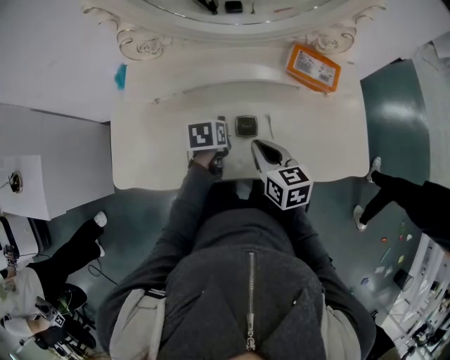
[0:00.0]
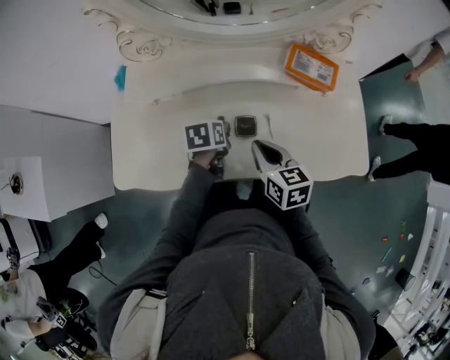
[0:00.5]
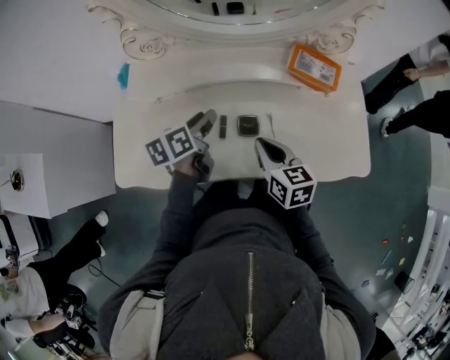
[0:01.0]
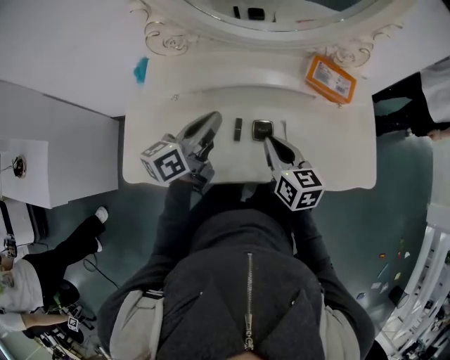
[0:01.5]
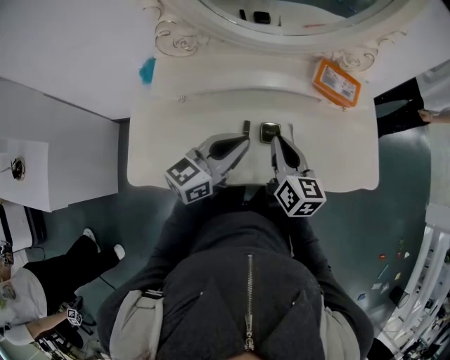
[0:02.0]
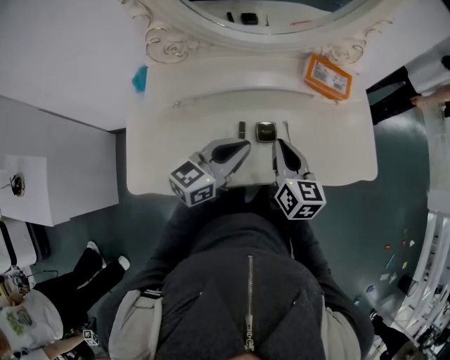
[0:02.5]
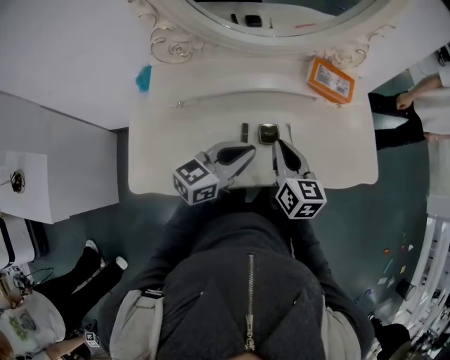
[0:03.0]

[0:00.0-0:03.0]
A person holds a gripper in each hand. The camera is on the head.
0:00.0 to 0:01.5: The left gripper moves upward, roughly 20 cm, angles its fingers upward, by approximately 50 degrees, and closes up.
0:01.5 to 0:03.0: The left gripper goes some 10 cm to the right and backward, and rotates some 30 degrees.

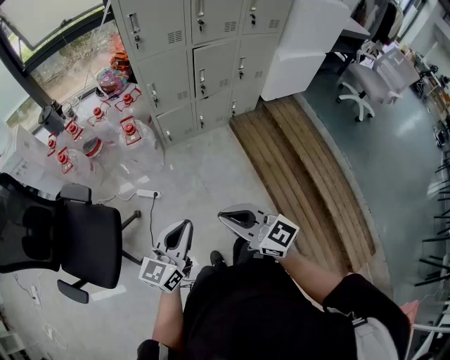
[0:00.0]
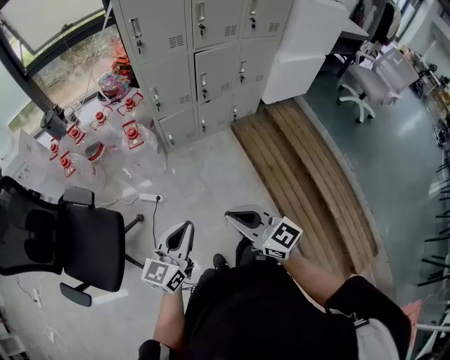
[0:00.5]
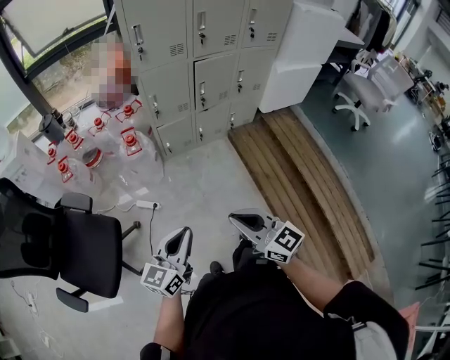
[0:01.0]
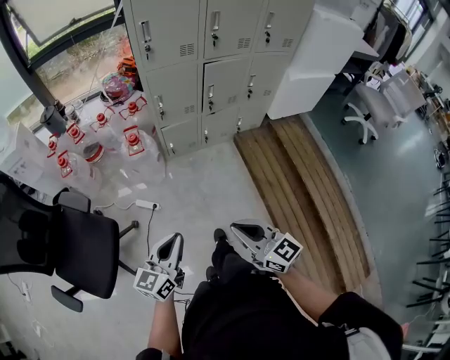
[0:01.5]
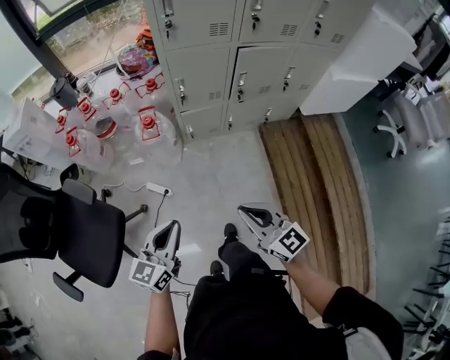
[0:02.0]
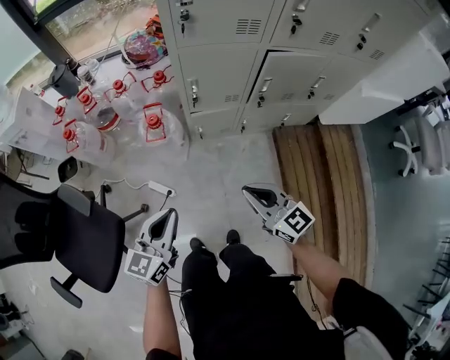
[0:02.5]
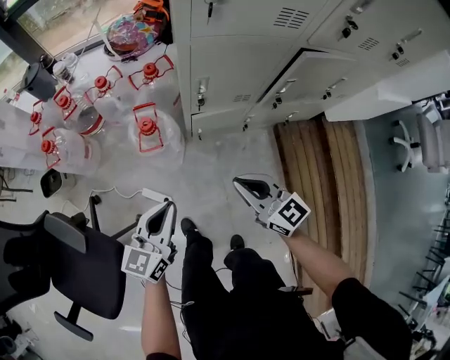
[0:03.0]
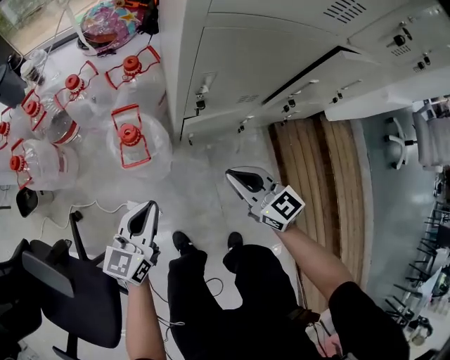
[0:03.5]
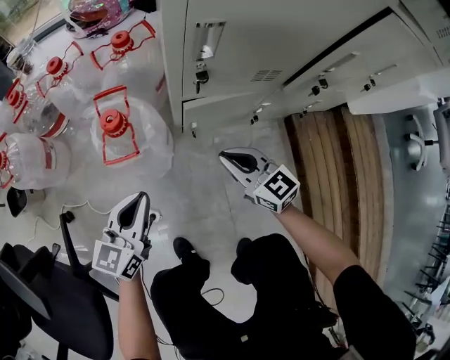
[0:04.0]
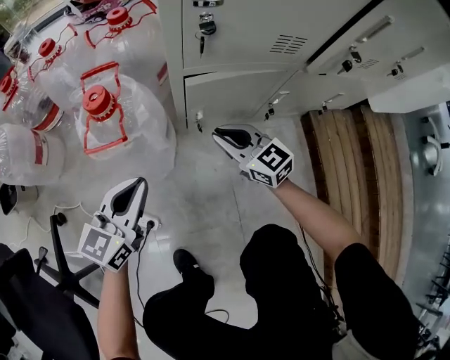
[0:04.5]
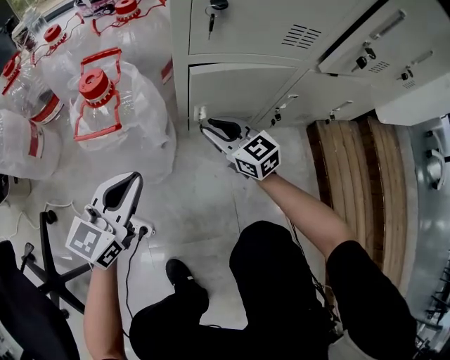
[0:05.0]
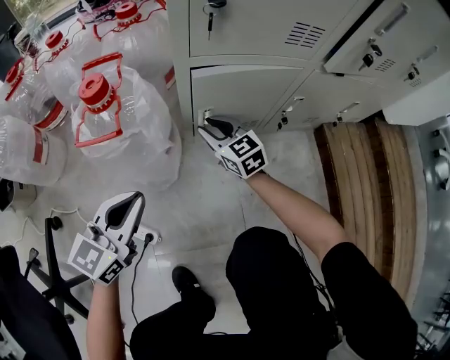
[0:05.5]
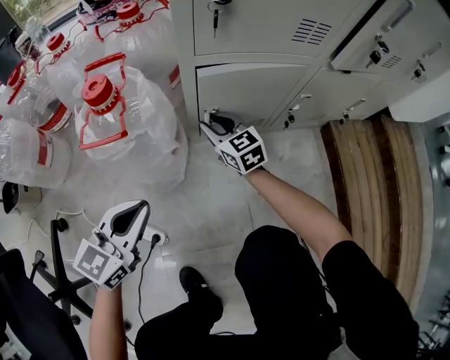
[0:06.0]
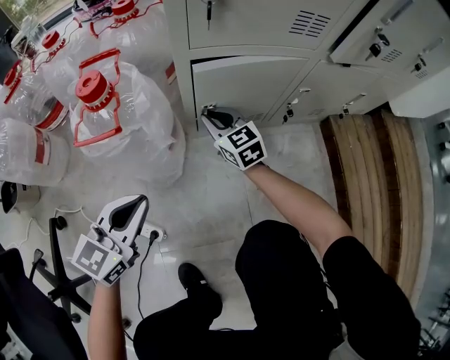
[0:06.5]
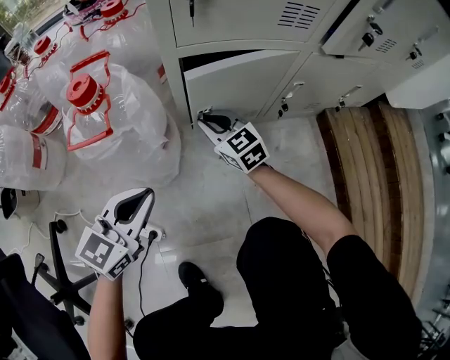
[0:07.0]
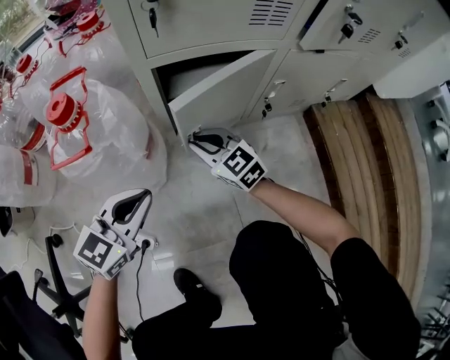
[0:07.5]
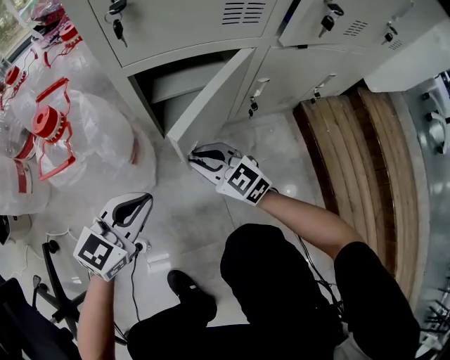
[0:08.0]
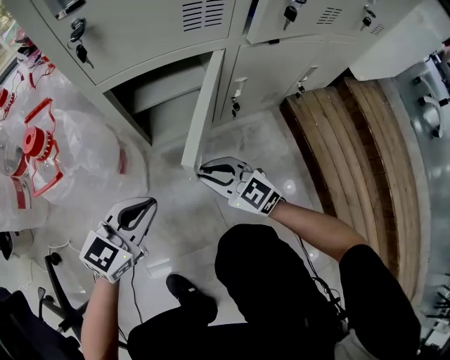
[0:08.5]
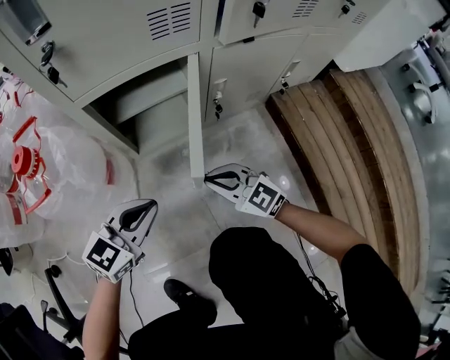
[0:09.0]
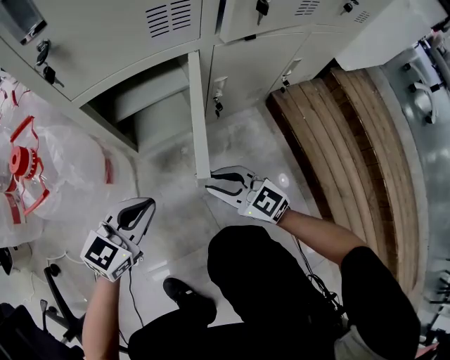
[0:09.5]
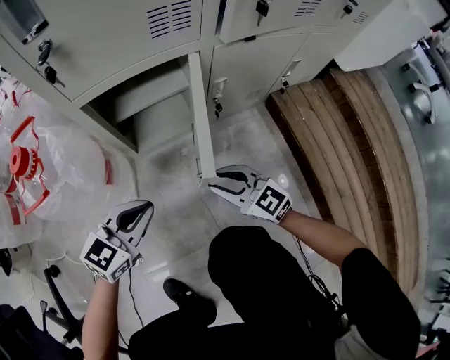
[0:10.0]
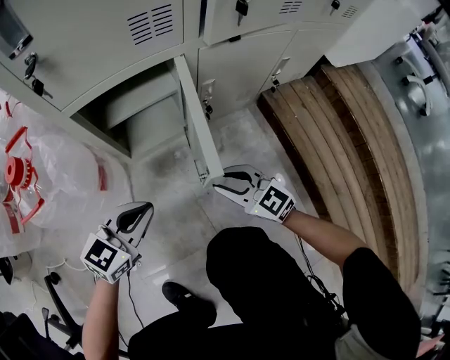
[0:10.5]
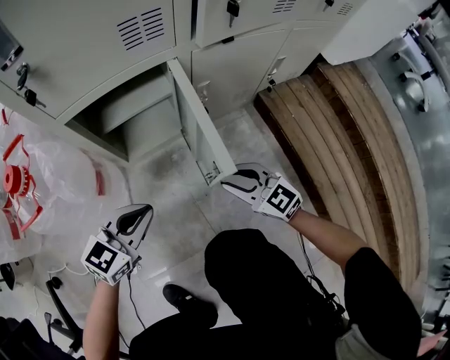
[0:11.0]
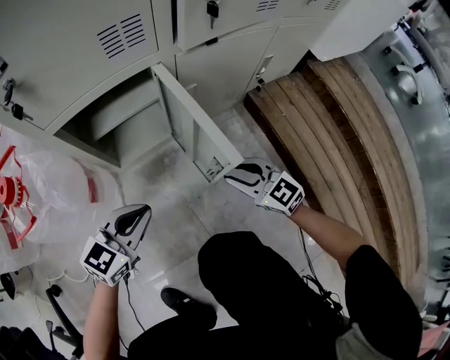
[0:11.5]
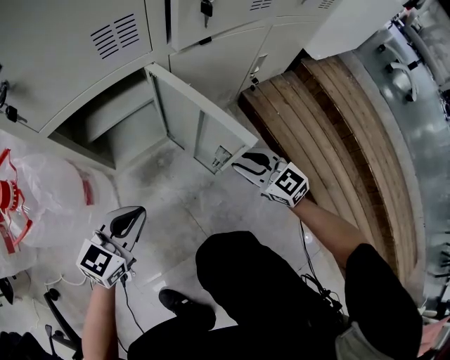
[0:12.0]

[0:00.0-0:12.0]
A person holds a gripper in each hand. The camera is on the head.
0:00.0 to 0:02.0: The grippers both shift forward by approximately 20 cm.
0:02.0 to 0:04.0: Both grippers are carried forward, about 40 cm. Both grippers move downward, some 40 cm.
0:04.0 to 0:06.0: The right gripper travels downward and forward by approximately 25 cm, and opens its fingers, while the left gripper travels downward by approximately 15 cm.
0:06.0 to 0:08.0: The right gripper travels backward and to the right by roughly 15 cm; the left gripper heads to the right, covering about 10 cm.
0:08.0 to 0:10.0: The left gripper is displaced to the right by roughly 5 cm, while the right gripper shifts about 15 cm to the right and backward.
0:10.0 to 0:12.0: The right gripper goes approximately 15 cm to the right.

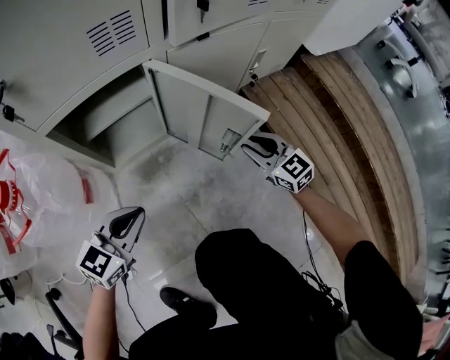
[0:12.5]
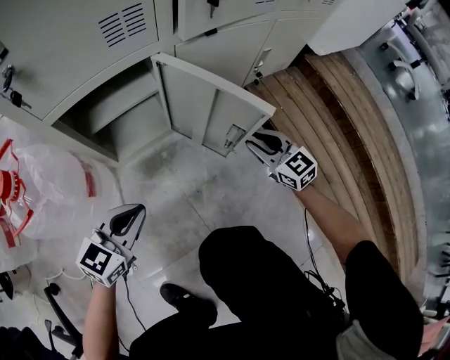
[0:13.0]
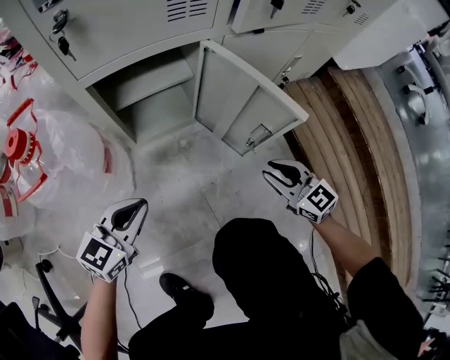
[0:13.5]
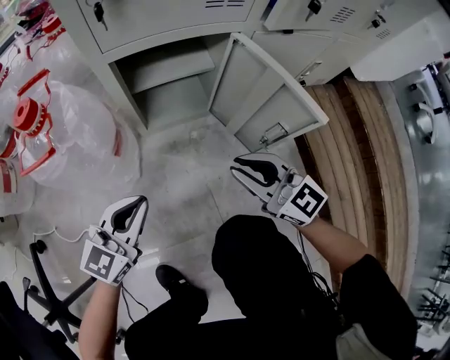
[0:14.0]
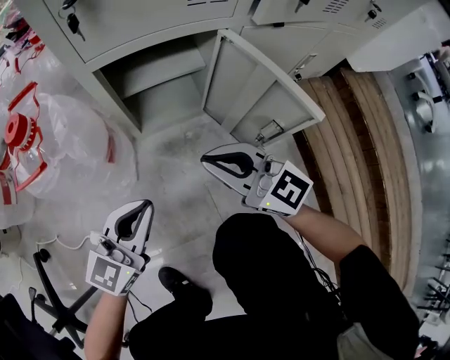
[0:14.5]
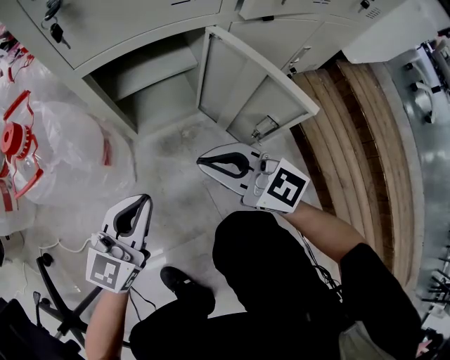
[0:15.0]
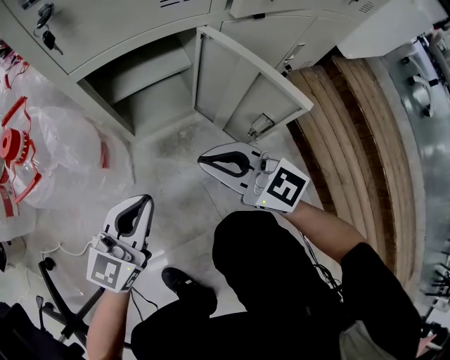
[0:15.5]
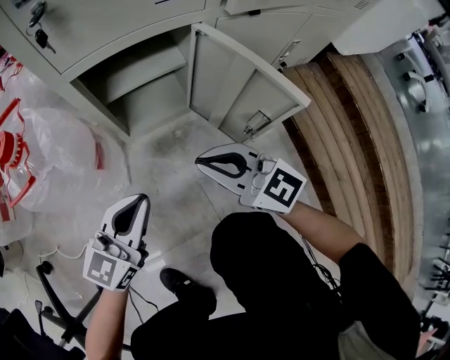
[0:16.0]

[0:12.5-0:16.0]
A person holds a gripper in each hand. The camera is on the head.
0:12.5 to 0:14.5: The right gripper is displaced to the left and upward by approximately 30 cm, swivels roughly 30 degrees, and closes its fingers; the left gripper shifts about 5 cm to the left, and rotates roughly 20 degrees.
0:14.5 to 0:16.0: The grippers stay close to where they were, moving slightly.

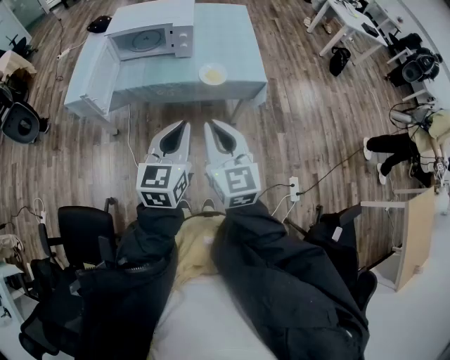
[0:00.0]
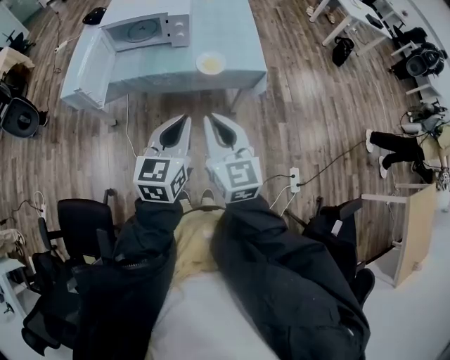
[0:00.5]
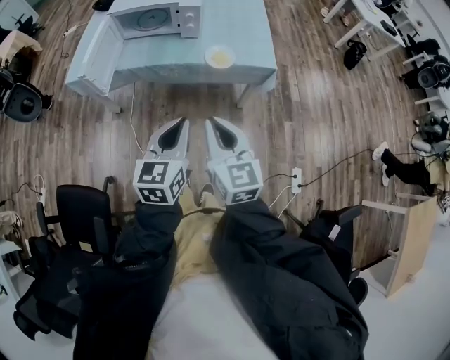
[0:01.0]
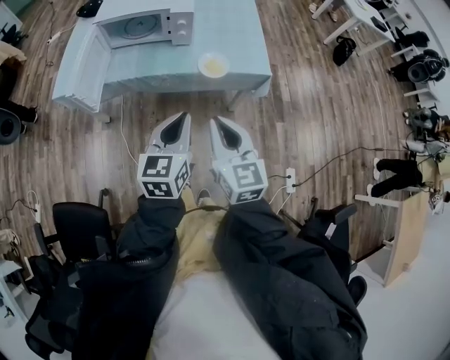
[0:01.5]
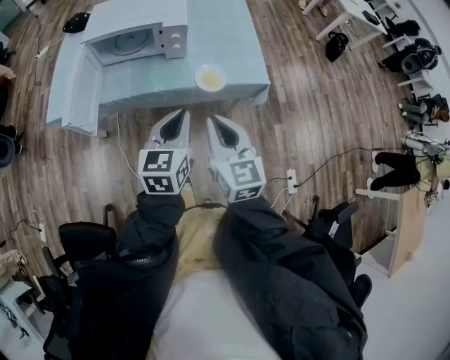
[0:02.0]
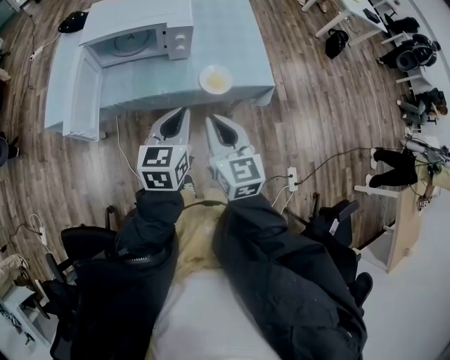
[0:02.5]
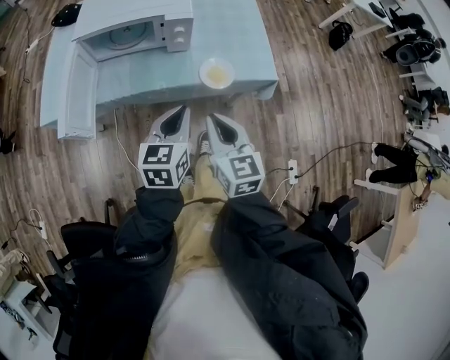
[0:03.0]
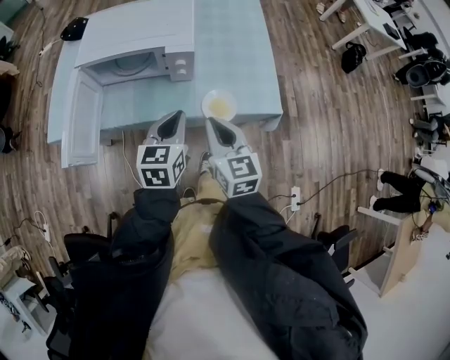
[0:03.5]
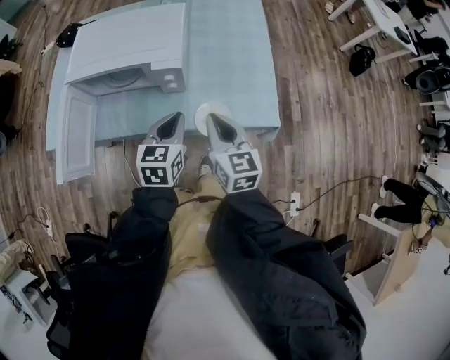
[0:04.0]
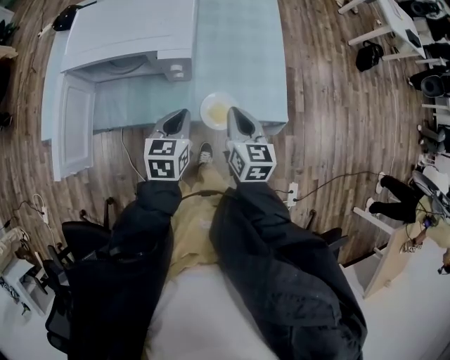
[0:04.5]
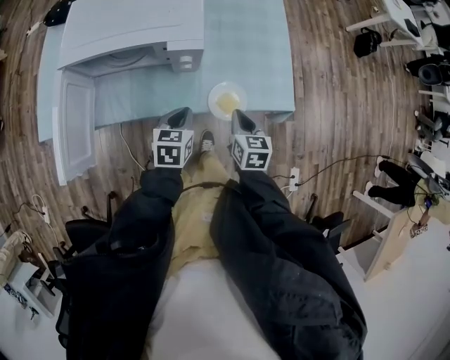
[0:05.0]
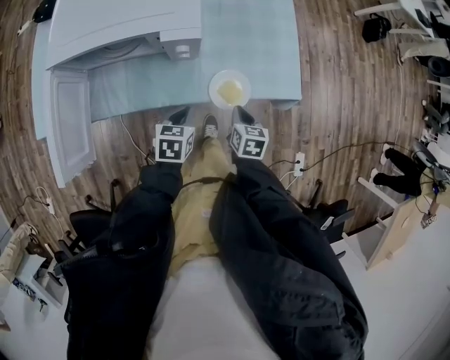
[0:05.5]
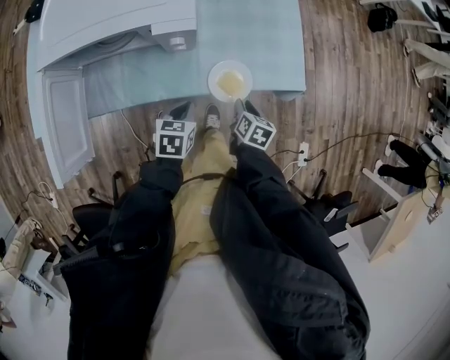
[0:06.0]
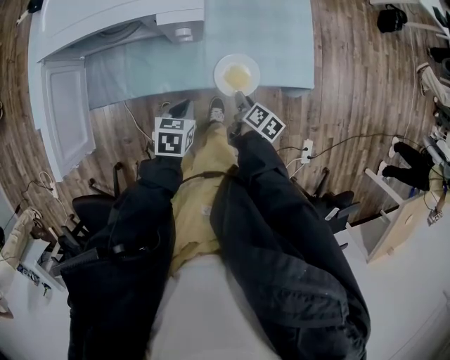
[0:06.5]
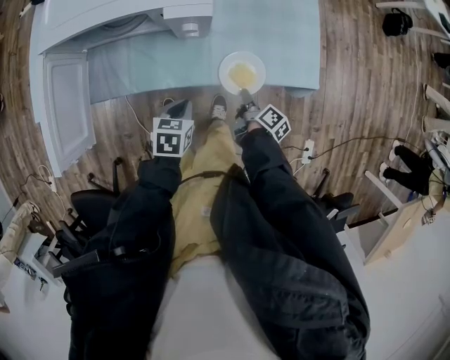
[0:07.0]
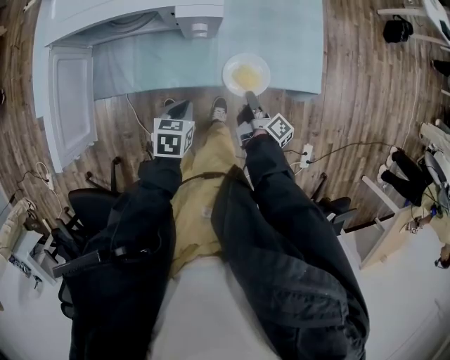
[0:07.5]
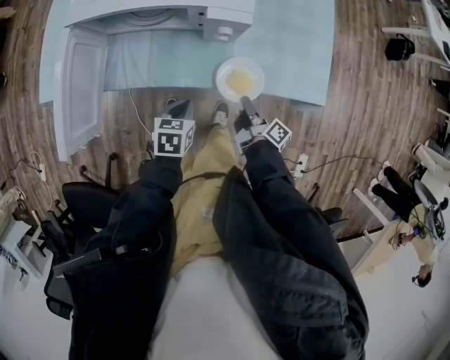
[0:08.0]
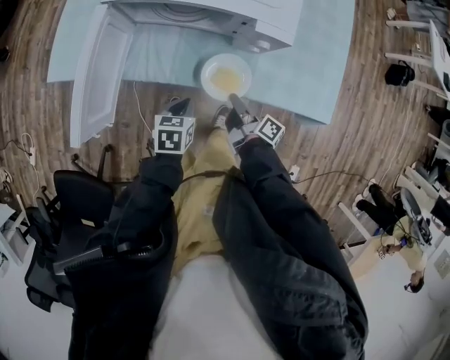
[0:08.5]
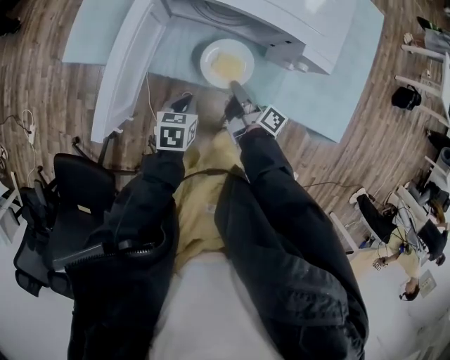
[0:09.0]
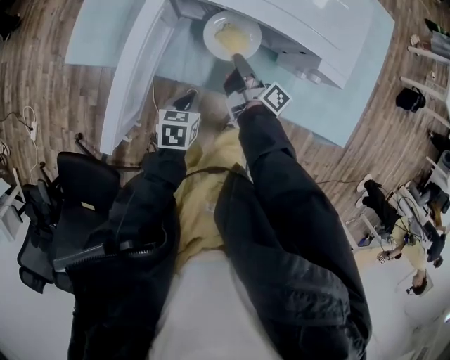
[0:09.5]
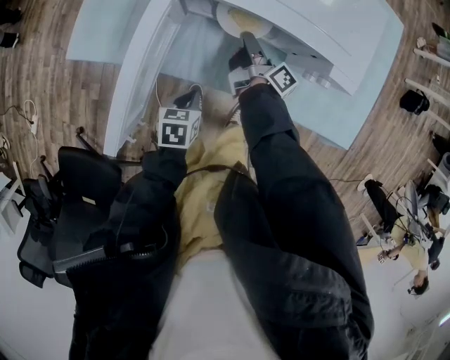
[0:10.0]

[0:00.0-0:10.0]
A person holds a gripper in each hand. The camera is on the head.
0:00.0 to 0:02.0: The two grippers go some 15 cm forward.
0:02.0 to 0:04.0: The two grippers go roughly 25 cm forward.
0:04.0 to 0:06.0: Both grippers travel together downward, approximately 25 cm. The right gripper points its fingers approximately 40 degrees further downward, and opens up. The left gripper rotates approximately 30 degrees.
0:06.0 to 0:08.0: The two grippers go some 10 cm to the left. The right gripper points its fingers some 30 degrees further upward, and closes its fingers.
0:08.0 to 0:10.0: The right gripper is displaced to the left and forward by about 35 cm, while the left gripper goes roughly 20 cm to the left.
